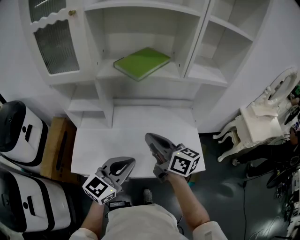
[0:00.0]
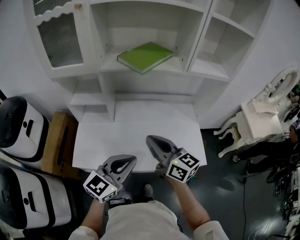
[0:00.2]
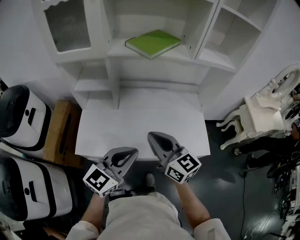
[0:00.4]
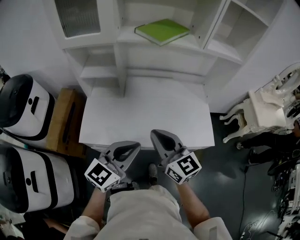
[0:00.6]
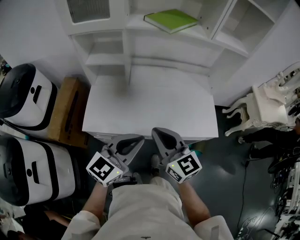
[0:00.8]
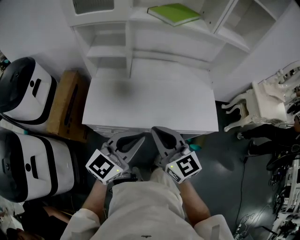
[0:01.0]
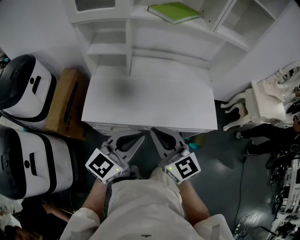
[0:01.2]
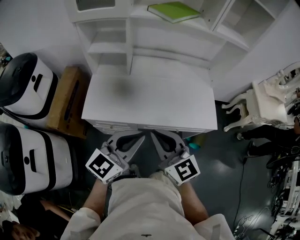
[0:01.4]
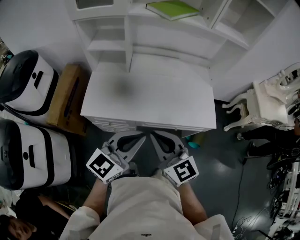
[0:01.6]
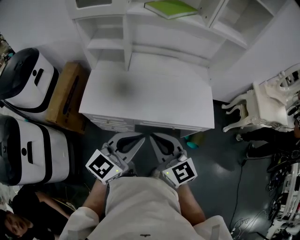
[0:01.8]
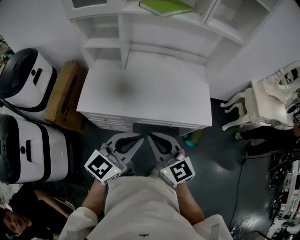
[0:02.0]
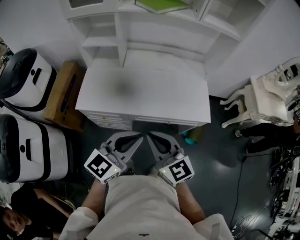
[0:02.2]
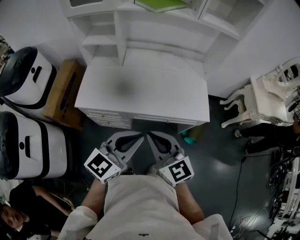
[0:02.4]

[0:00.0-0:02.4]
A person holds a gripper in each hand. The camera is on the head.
0:00.0 to 0:01.2: The left gripper shifts by about 15 cm.
0:01.2 to 0:02.4: The left gripper ends up roughly 10 cm from where it was.

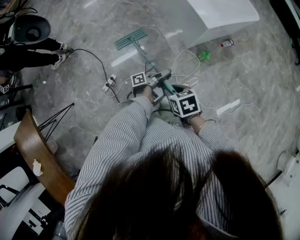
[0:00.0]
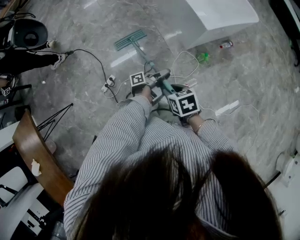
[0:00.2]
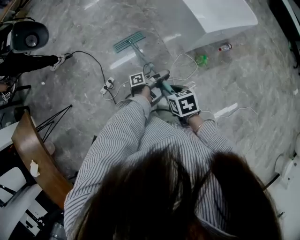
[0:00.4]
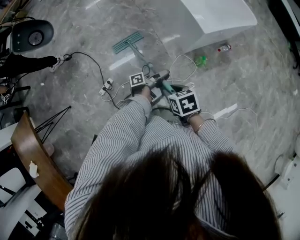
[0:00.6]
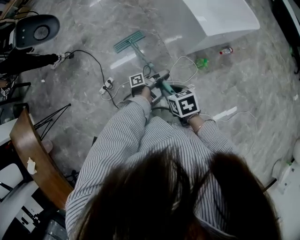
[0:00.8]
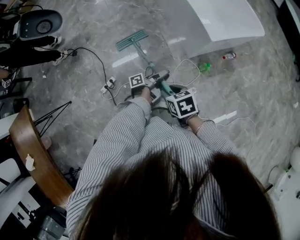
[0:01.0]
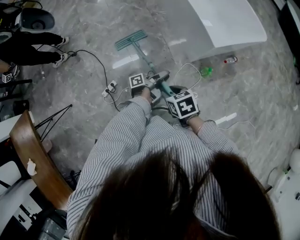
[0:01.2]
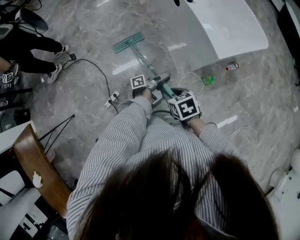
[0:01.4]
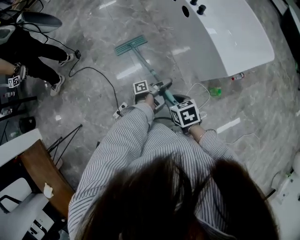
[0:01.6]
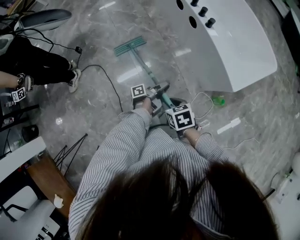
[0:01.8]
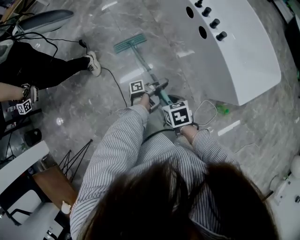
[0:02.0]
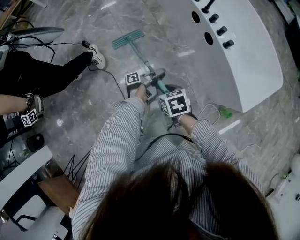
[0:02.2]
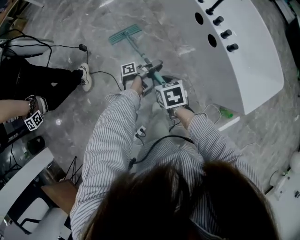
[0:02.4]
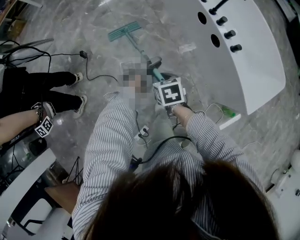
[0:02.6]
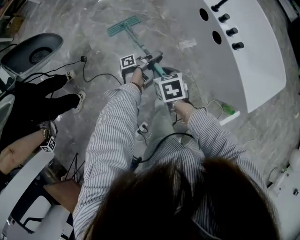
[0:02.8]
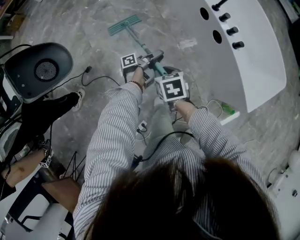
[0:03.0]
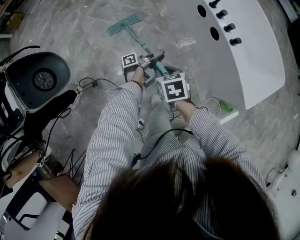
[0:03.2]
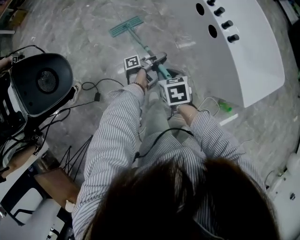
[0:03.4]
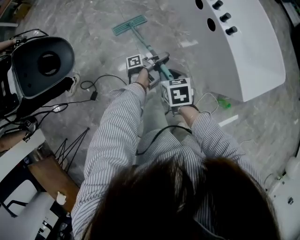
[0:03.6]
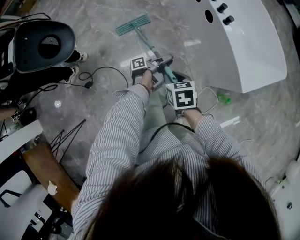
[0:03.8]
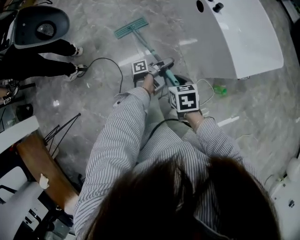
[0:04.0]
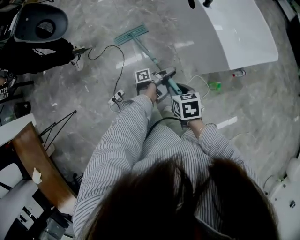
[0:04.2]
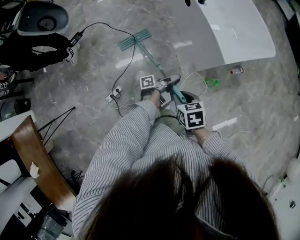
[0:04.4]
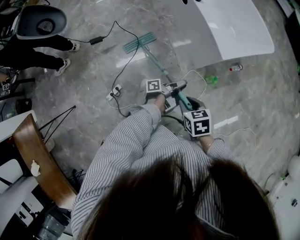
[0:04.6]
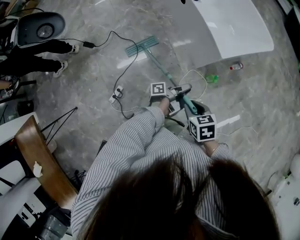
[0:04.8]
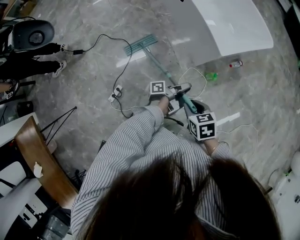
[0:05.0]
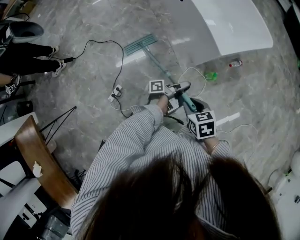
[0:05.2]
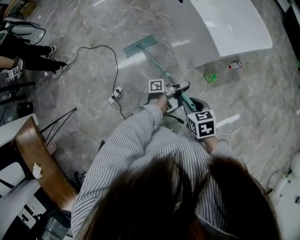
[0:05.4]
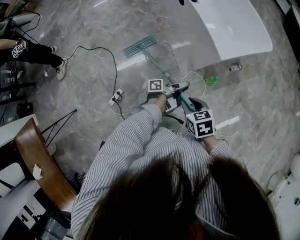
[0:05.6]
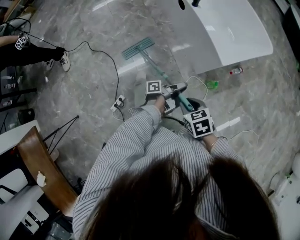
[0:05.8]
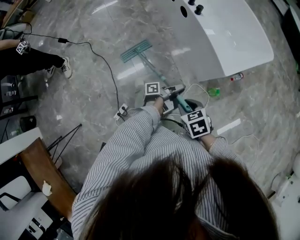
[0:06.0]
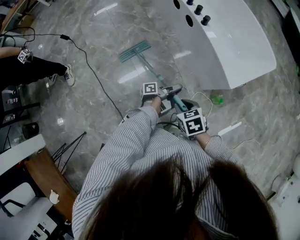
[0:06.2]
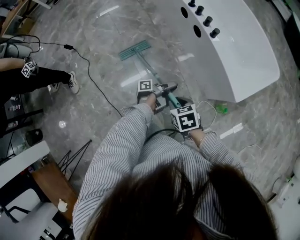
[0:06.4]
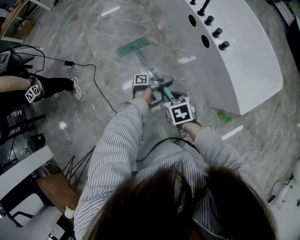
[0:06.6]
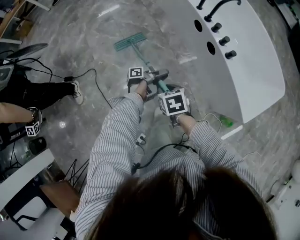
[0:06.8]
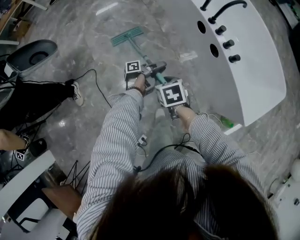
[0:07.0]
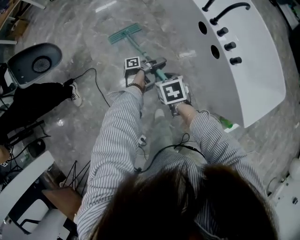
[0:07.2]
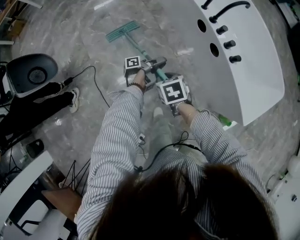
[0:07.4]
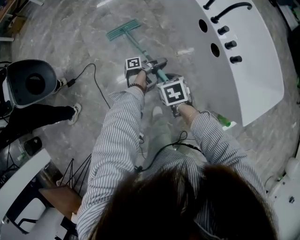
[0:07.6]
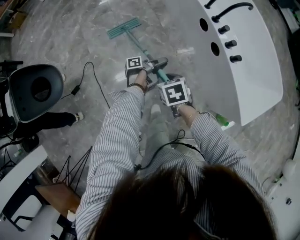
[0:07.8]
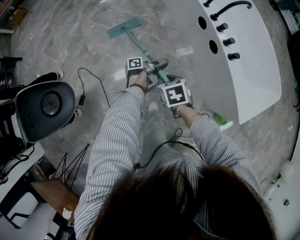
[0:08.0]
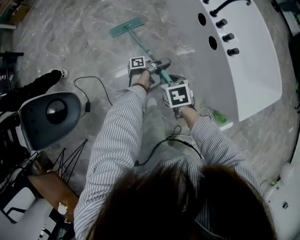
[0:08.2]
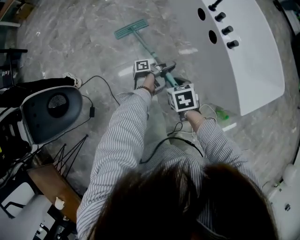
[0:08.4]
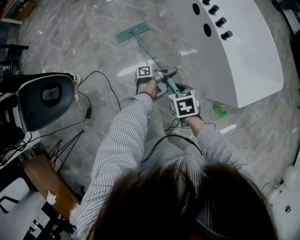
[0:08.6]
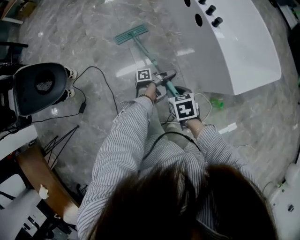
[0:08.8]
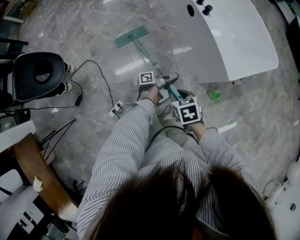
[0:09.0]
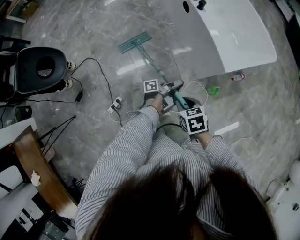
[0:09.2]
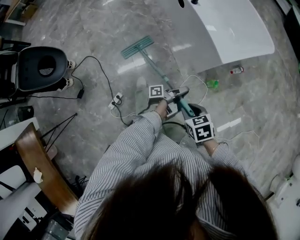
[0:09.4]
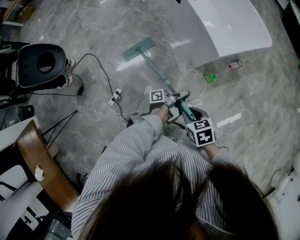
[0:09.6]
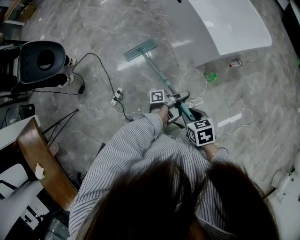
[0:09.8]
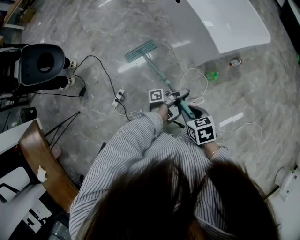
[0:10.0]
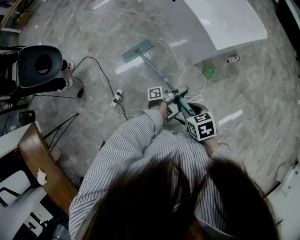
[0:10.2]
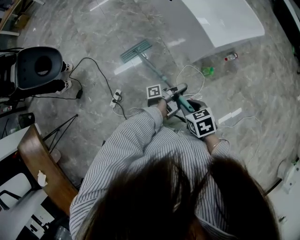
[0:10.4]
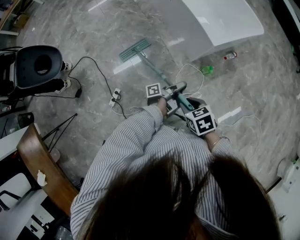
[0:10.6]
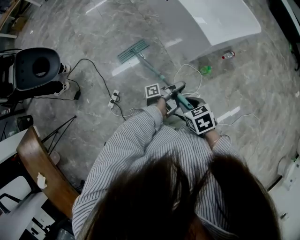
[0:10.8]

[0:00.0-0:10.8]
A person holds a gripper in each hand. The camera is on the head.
0:00.0 to 0:01.6: The right gripper shifts by about 25 cm.
0:01.6 to 0:03.0: The right gripper changes place by some 50 cm.
0:03.0 to 0:04.6: The right gripper shifts by some 60 cm.
0:04.6 to 0:06.2: The right gripper changes place by roughly 20 cm.
0:06.2 to 0:07.8: The right gripper changes place by about 40 cm.
0:07.8 to 0:09.2: The right gripper moves roughly 60 cm.
0:09.2 to 0:10.8: The right gripper moves some 15 cm.

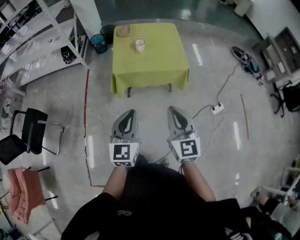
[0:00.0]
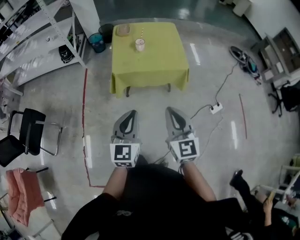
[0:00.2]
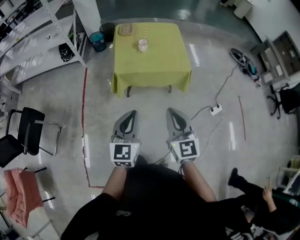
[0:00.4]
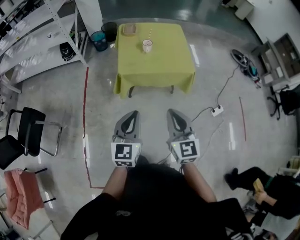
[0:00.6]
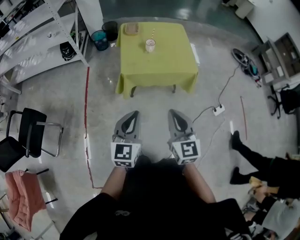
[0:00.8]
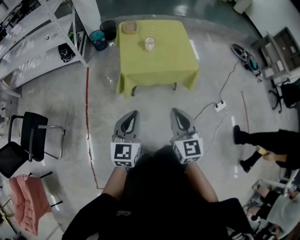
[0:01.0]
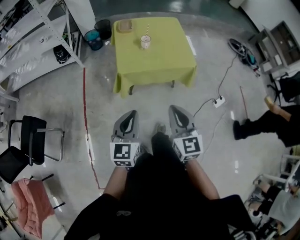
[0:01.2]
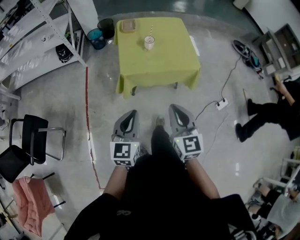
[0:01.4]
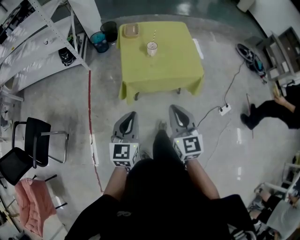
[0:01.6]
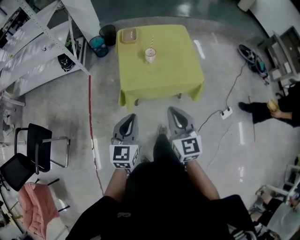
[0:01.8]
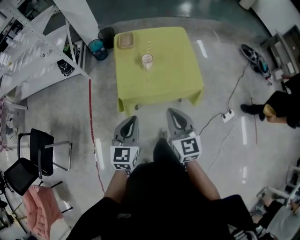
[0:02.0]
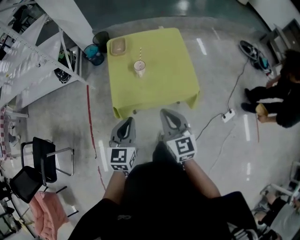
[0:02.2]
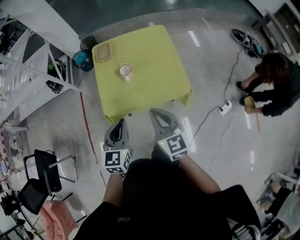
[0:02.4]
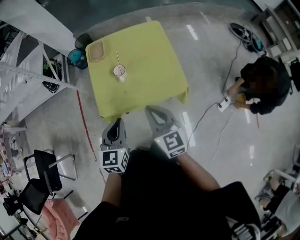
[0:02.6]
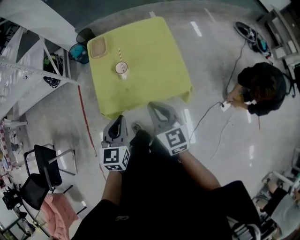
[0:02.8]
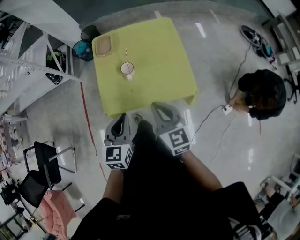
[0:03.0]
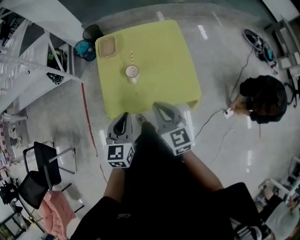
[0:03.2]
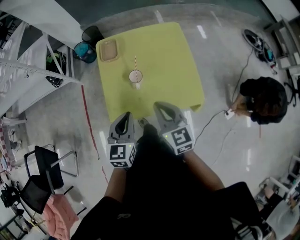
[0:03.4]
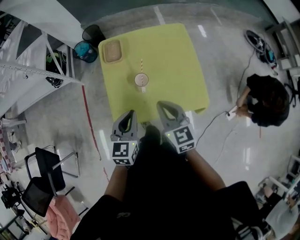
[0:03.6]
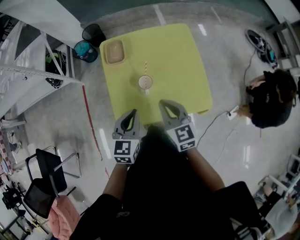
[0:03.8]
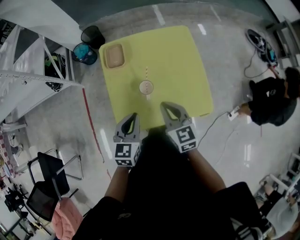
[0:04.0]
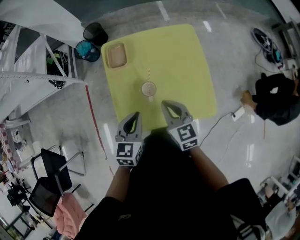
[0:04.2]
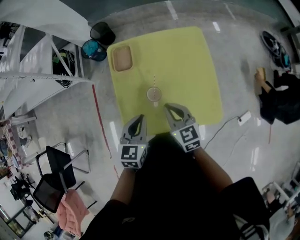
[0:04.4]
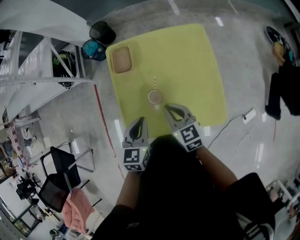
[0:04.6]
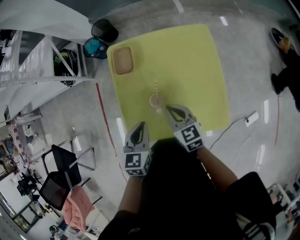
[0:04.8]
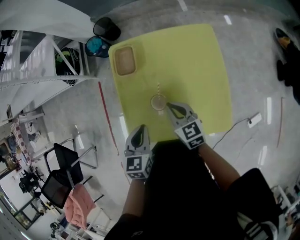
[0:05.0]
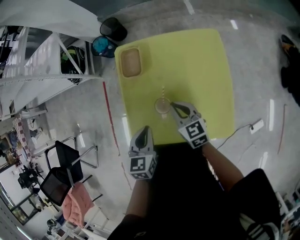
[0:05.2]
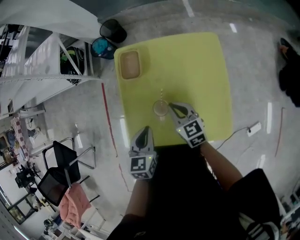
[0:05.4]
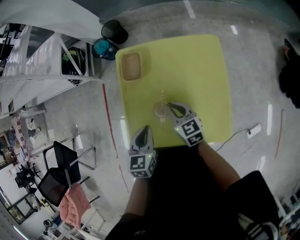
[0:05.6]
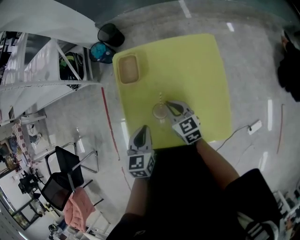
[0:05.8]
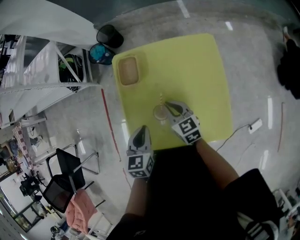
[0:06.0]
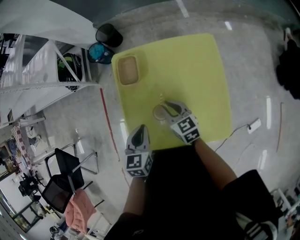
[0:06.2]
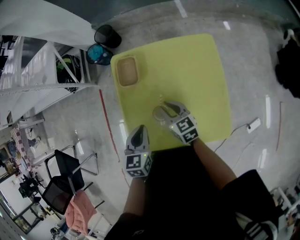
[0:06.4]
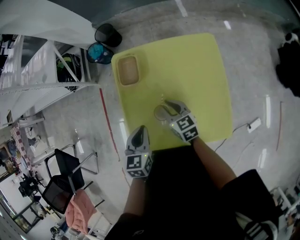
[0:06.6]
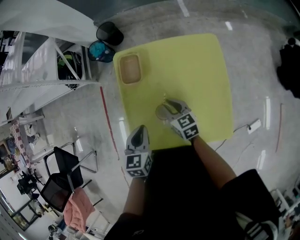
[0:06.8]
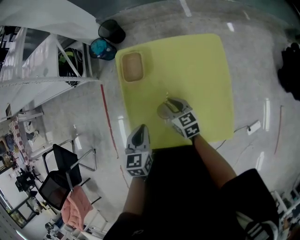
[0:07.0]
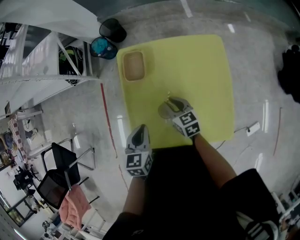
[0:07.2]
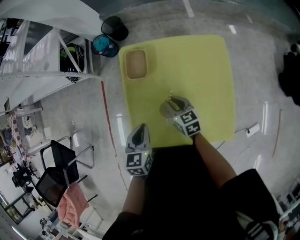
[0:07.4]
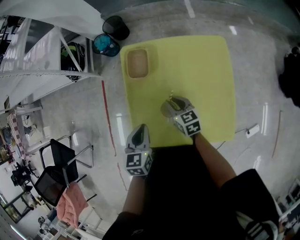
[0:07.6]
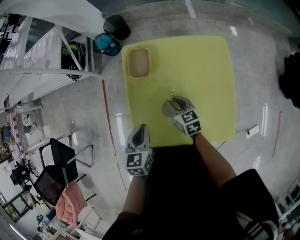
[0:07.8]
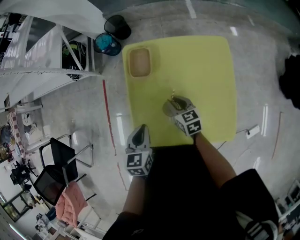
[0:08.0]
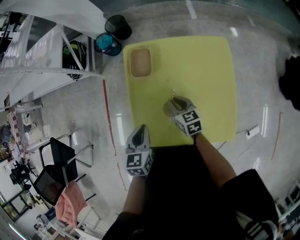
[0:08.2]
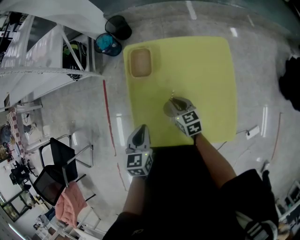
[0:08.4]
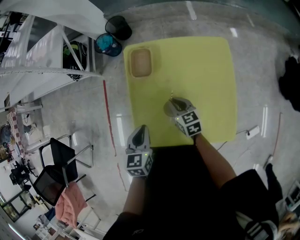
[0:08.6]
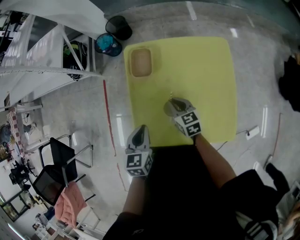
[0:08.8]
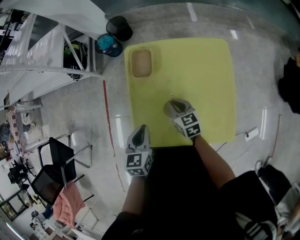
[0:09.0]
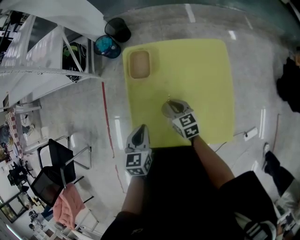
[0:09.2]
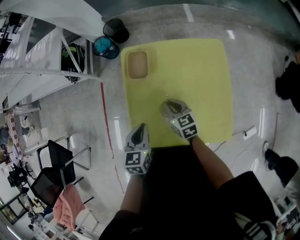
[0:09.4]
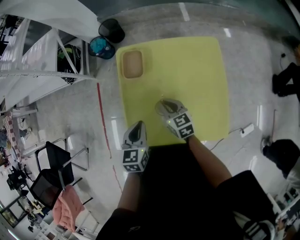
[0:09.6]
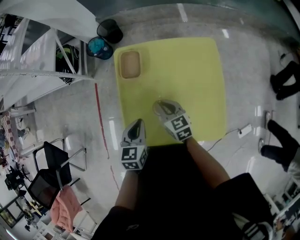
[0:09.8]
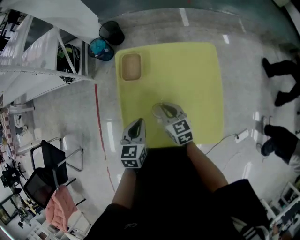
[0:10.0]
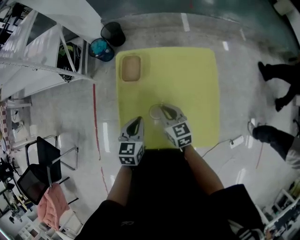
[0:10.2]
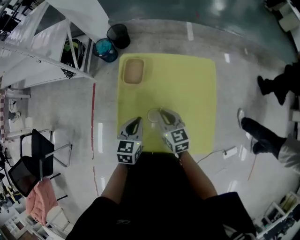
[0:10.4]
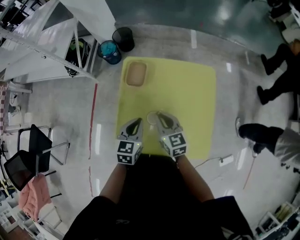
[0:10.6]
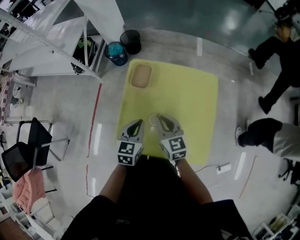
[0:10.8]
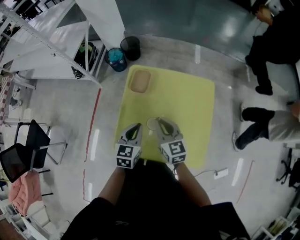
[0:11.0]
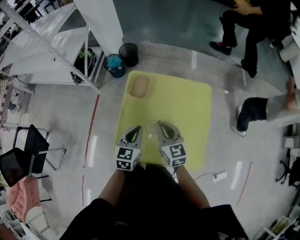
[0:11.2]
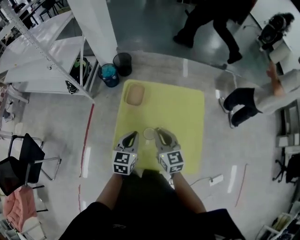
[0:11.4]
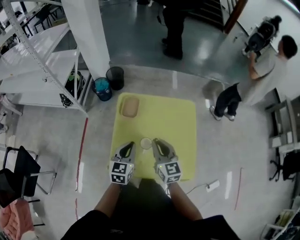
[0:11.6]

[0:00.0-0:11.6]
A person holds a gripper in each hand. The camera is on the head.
0:00.0 to 0:01.4: The left gripper is displaced to the left, forward and downward by roughly 15 cm. The right gripper travels to the left and forward by about 15 cm.
0:01.4 to 0:02.8: The two grippers go approximately 35 cm forward and to the right.
0:02.8 to 0:04.4: The right gripper moves forward and downward, roughly 25 cm. The left gripper travels forward by some 25 cm.
0:04.4 to 0:05.8: The right gripper goes about 10 cm forward and downward, while the left gripper moves approximately 5 cm.
0:05.8 to 0:07.2: The right gripper changes place by some 5 cm.
0:07.2 to 0:08.8: The grippers move only a little.
0:08.8 to 0:10.2: The right gripper travels upward by some 10 cm; the left gripper is displaced to the right by roughly 5 cm.
0:10.2 to 0:11.6: The left gripper is displaced upward by roughly 10 cm, while the right gripper moves upward, some 15 cm.
